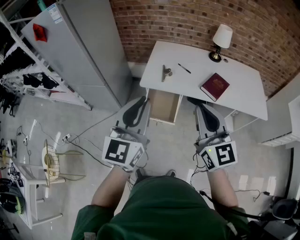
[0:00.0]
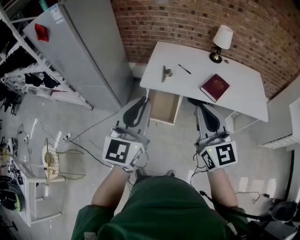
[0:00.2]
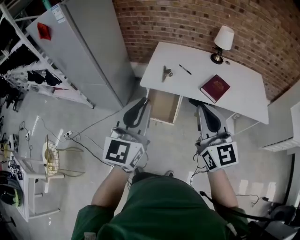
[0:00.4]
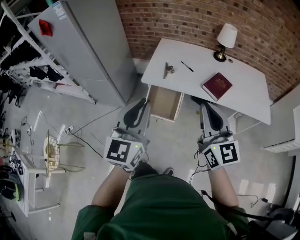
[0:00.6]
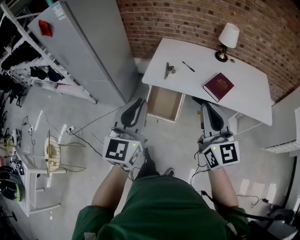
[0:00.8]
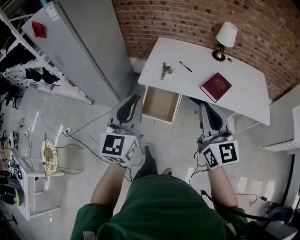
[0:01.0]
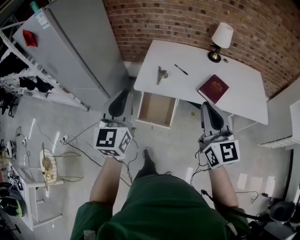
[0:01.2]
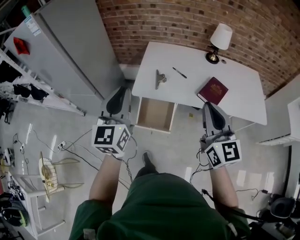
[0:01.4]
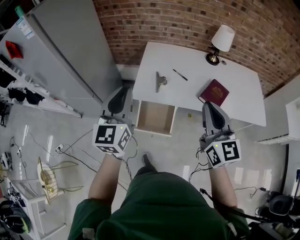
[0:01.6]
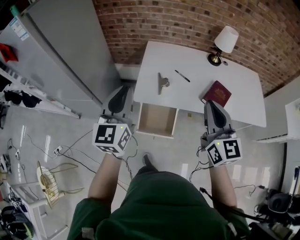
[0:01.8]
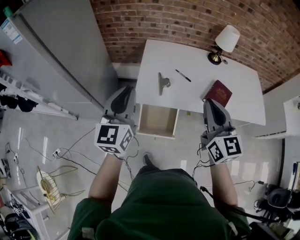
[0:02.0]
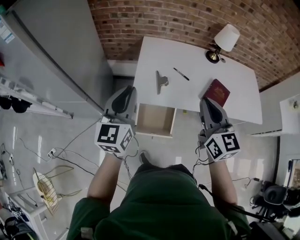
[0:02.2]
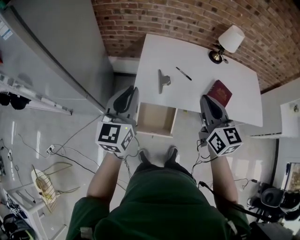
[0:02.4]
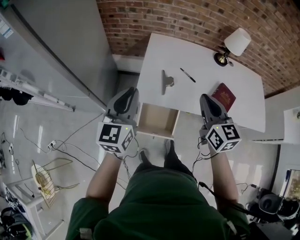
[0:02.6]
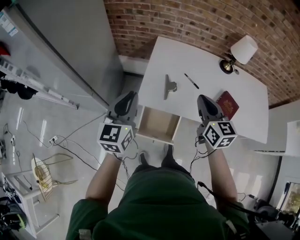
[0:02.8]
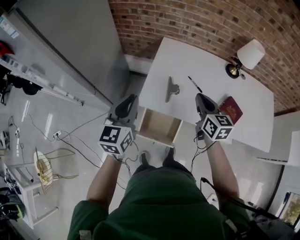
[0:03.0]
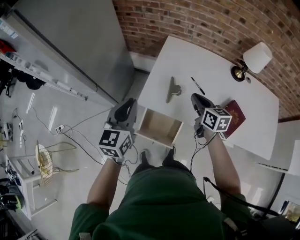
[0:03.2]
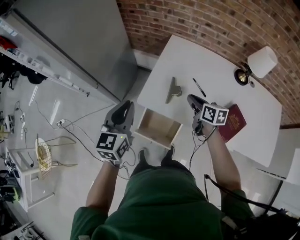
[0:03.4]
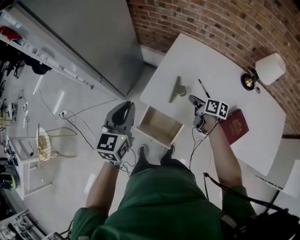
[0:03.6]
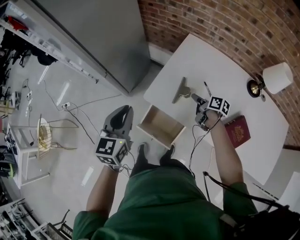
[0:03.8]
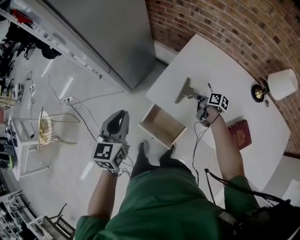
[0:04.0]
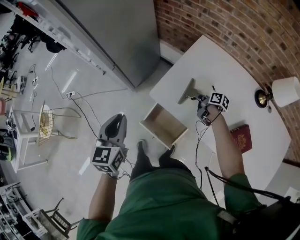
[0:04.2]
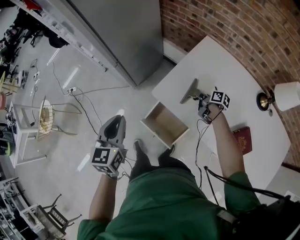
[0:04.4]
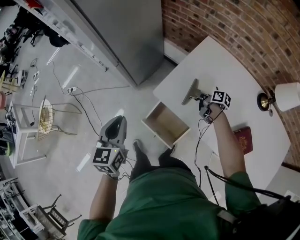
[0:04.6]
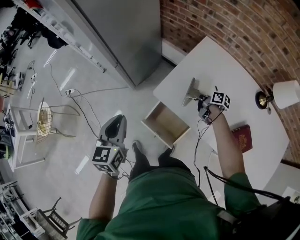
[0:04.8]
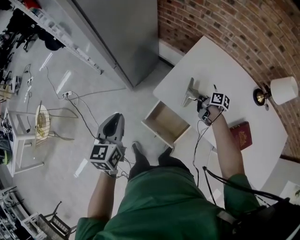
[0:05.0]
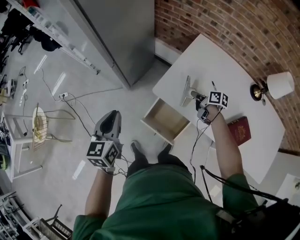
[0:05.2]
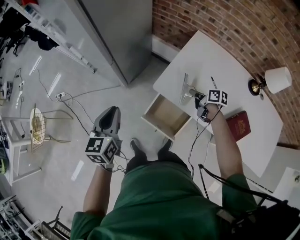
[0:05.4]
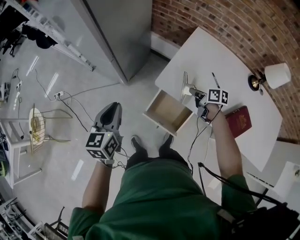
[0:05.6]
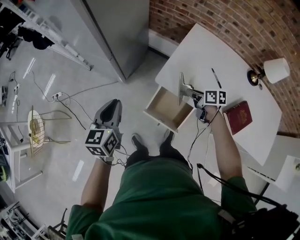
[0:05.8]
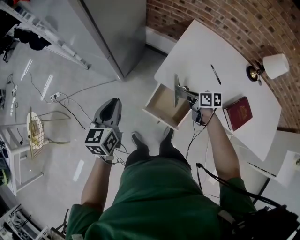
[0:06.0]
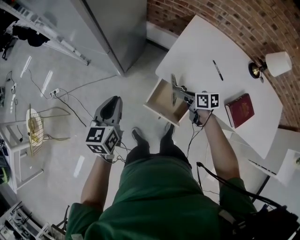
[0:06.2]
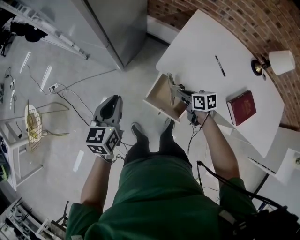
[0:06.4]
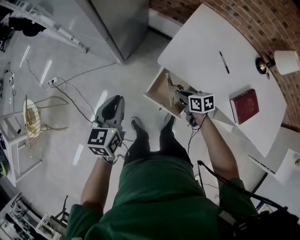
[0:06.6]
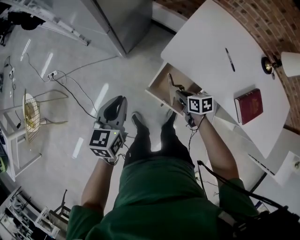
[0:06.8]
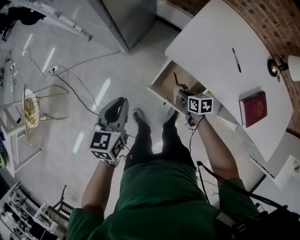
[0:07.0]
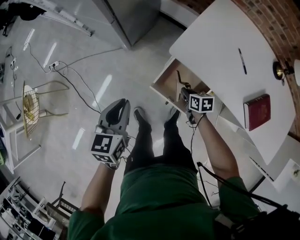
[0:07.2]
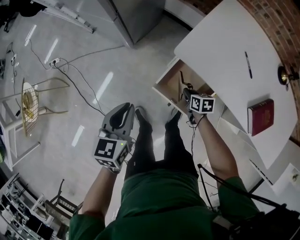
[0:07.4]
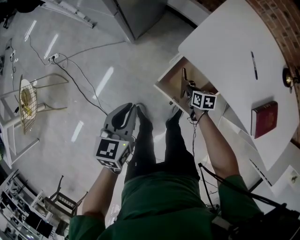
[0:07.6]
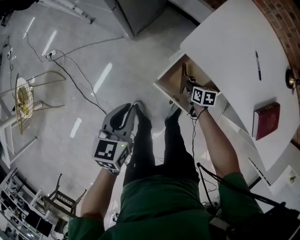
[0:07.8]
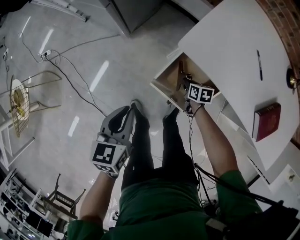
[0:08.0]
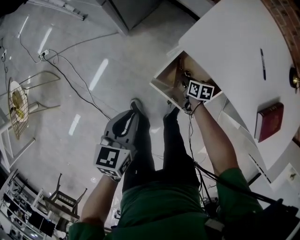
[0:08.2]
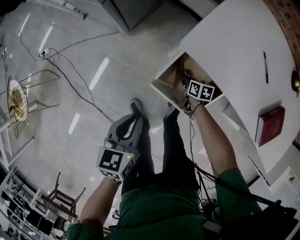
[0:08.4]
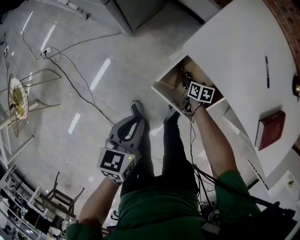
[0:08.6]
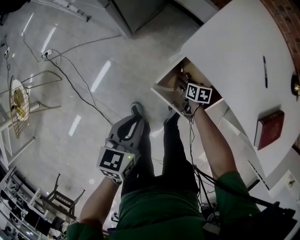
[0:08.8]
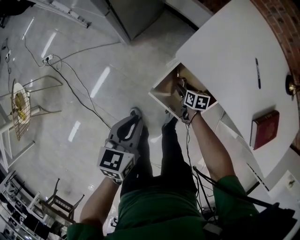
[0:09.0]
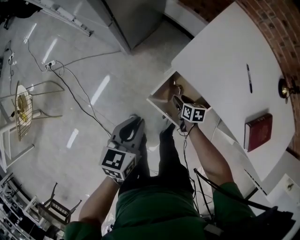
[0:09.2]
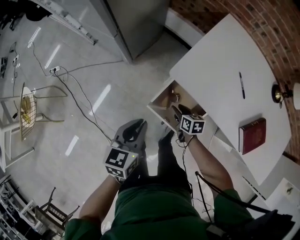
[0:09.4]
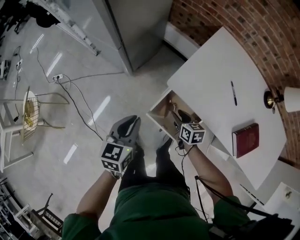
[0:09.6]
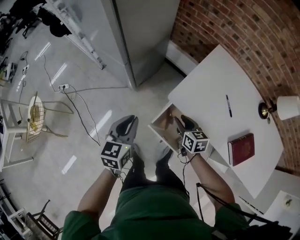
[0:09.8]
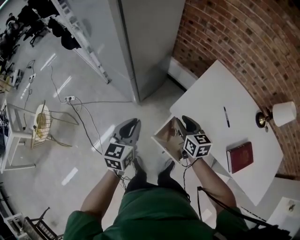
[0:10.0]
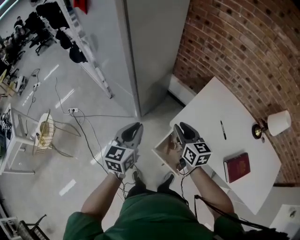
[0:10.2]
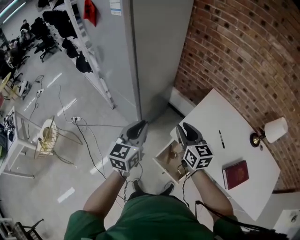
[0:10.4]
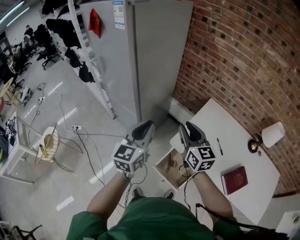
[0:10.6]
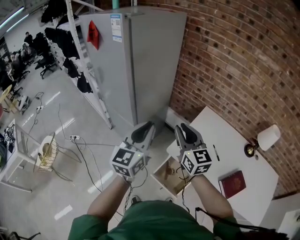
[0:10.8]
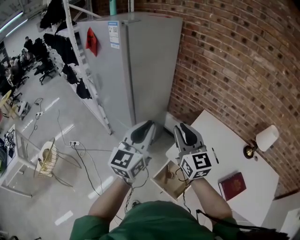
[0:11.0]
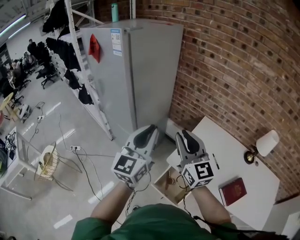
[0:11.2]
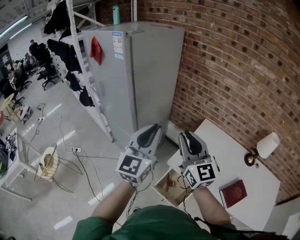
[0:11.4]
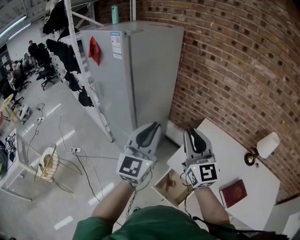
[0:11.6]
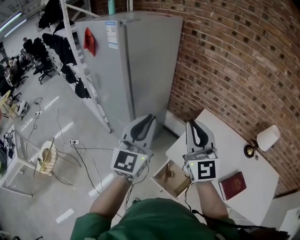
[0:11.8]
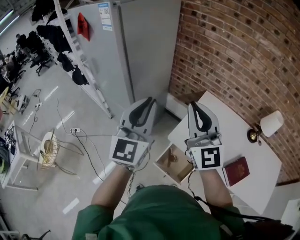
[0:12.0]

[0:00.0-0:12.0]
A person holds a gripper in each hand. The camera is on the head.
0:00.0 to 0:01.6: Both grippers travel together forward, some 20 cm.
0:01.6 to 0:03.0: The left gripper travels forward and downward by about 15 cm. Meanwhile the right gripper moves forward and downward, about 30 cm, and rotates roughly 30 degrees.
0:03.0 to 0:04.4: The left gripper moves about 15 cm, and turns by some 30 degrees; the right gripper travels downward by some 30 cm, swivels approximately 60 degrees, and opens up.
0:04.4 to 0:06.0: The left gripper travels to the left by roughly 10 cm. The right gripper goes approximately 20 cm to the left, backward and upward, turns by some 20 degrees, and closes.
0:06.0 to 0:07.6: The right gripper is displaced downward by roughly 25 cm. The left gripper moves downward and backward, about 15 cm.
0:07.6 to 0:09.0: The right gripper goes roughly 5 cm downward, and opens up. Meanwhile the left gripper shifts by about 5 cm.
0:09.0 to 0:10.4: The left gripper moves upward, about 35 cm, and turns by some 30 degrees. Meanwhile the right gripper goes about 60 cm upward, tips its fingers upward by roughly 40 degrees, and closes up.
0:10.4 to 0:12.0: Both grippers travel together upward, some 20 cm. The right gripper rotates approximately 40 degrees, and closes up. Meanwhile the left gripper rotates roughly 30 degrees.

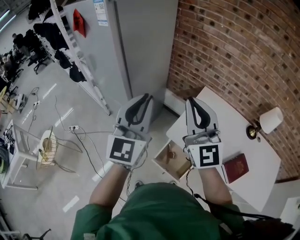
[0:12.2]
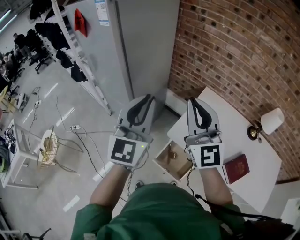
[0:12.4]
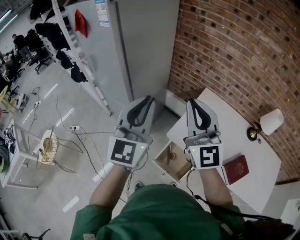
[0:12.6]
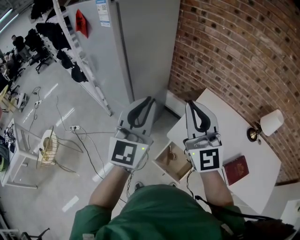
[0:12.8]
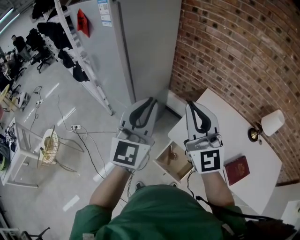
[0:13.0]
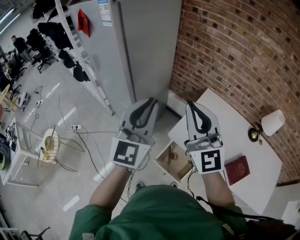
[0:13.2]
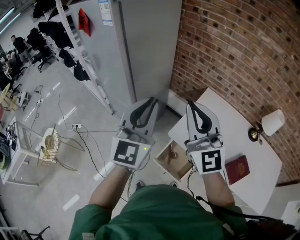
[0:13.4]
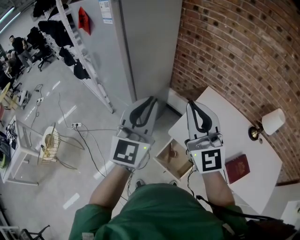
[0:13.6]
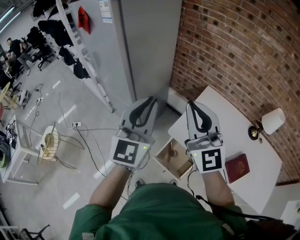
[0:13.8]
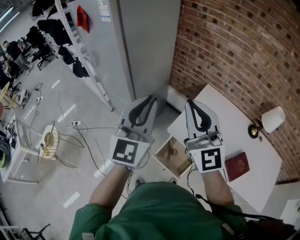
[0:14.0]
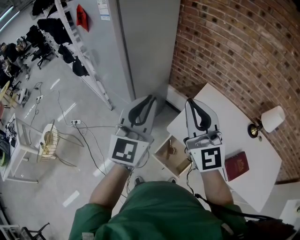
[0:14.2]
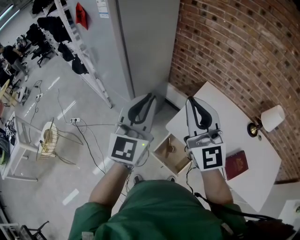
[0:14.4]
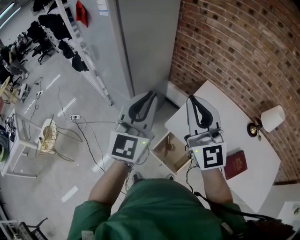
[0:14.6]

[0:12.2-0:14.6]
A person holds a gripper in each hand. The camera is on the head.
0:12.2 to 0:14.6: The grippers move only a little.

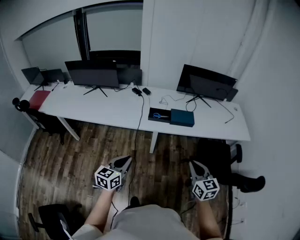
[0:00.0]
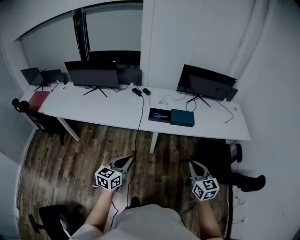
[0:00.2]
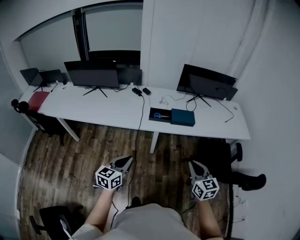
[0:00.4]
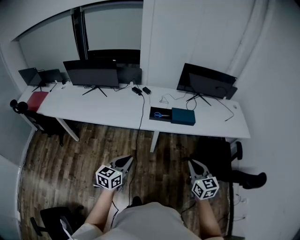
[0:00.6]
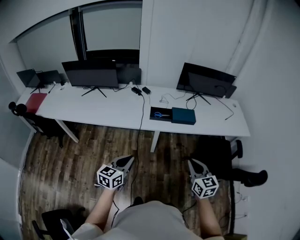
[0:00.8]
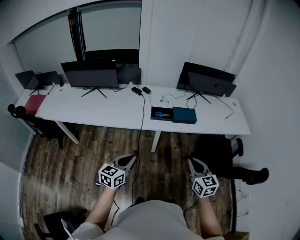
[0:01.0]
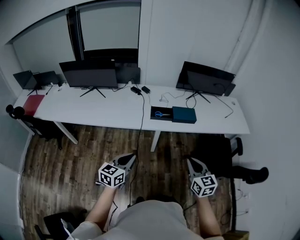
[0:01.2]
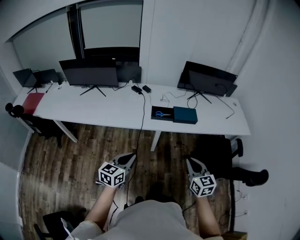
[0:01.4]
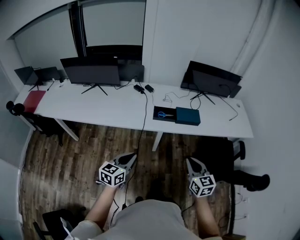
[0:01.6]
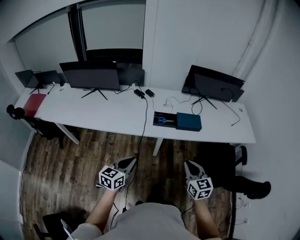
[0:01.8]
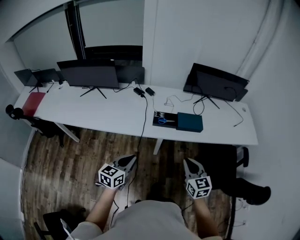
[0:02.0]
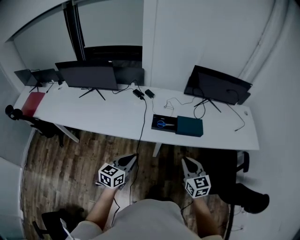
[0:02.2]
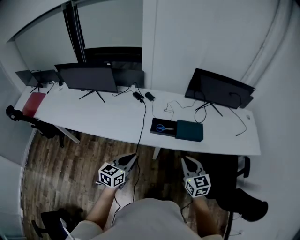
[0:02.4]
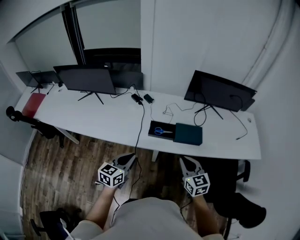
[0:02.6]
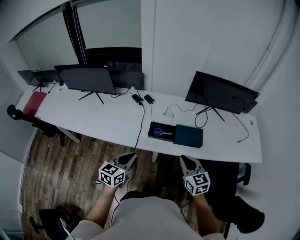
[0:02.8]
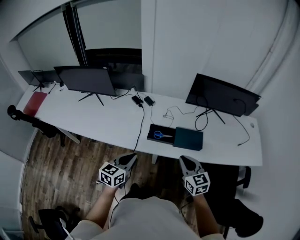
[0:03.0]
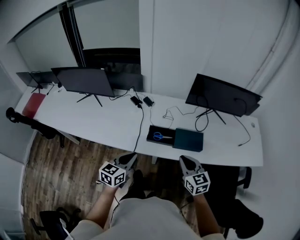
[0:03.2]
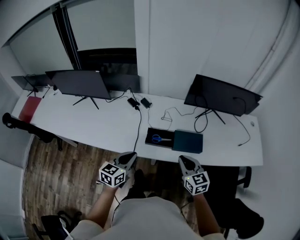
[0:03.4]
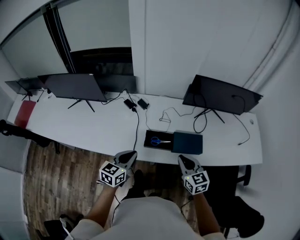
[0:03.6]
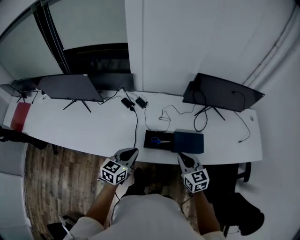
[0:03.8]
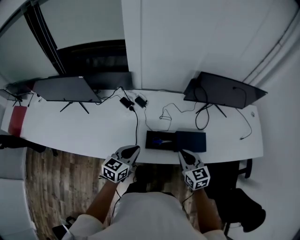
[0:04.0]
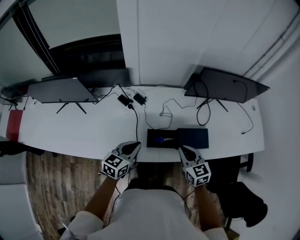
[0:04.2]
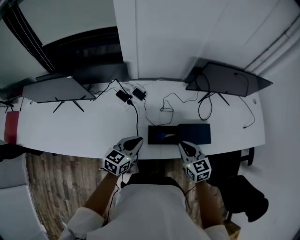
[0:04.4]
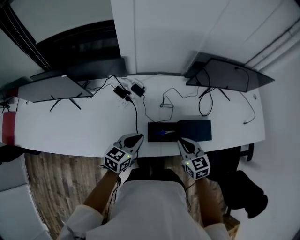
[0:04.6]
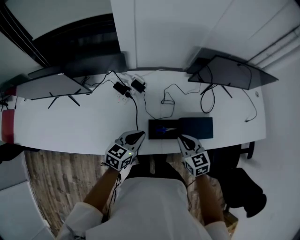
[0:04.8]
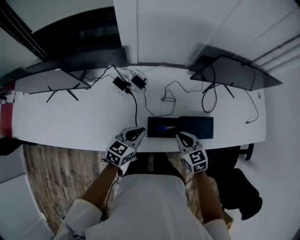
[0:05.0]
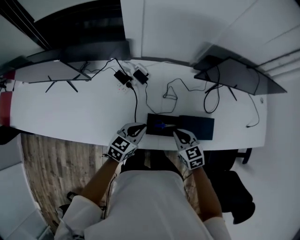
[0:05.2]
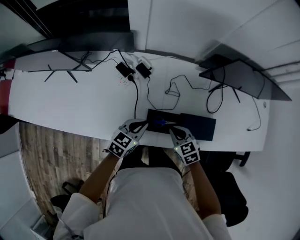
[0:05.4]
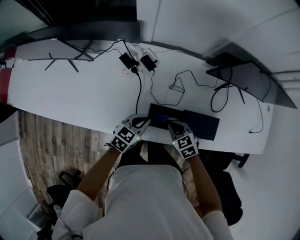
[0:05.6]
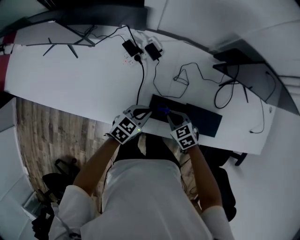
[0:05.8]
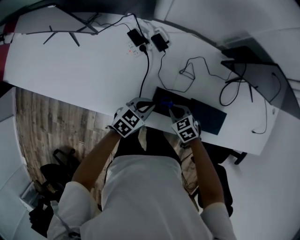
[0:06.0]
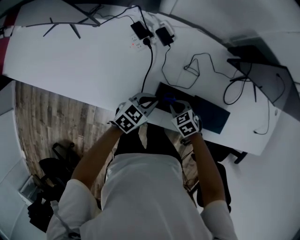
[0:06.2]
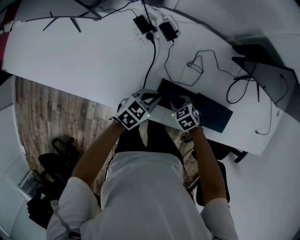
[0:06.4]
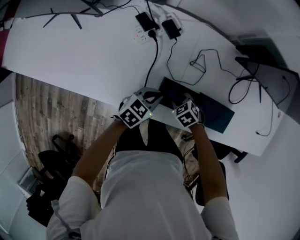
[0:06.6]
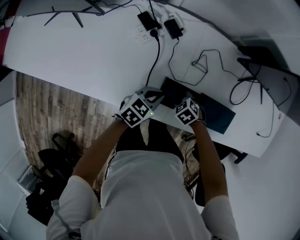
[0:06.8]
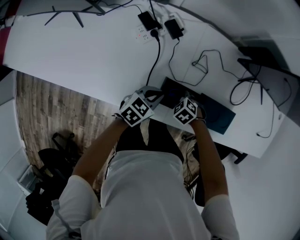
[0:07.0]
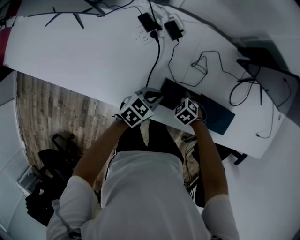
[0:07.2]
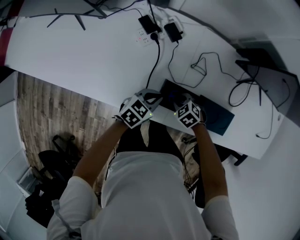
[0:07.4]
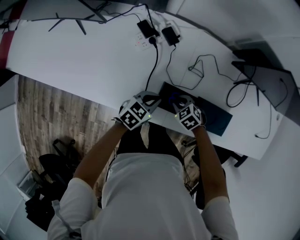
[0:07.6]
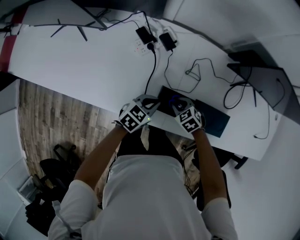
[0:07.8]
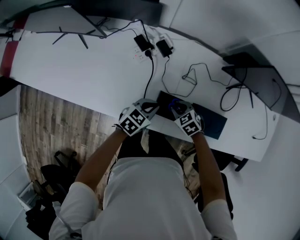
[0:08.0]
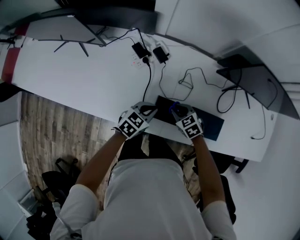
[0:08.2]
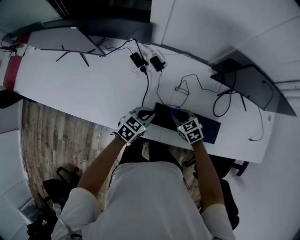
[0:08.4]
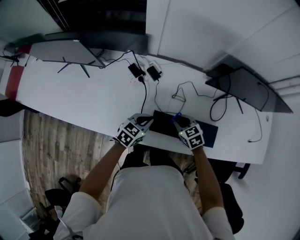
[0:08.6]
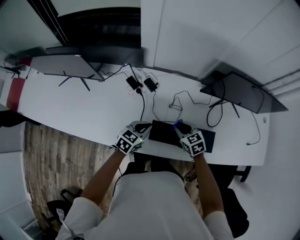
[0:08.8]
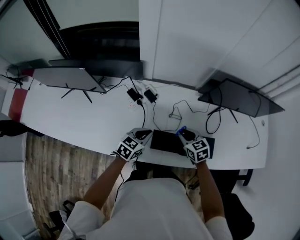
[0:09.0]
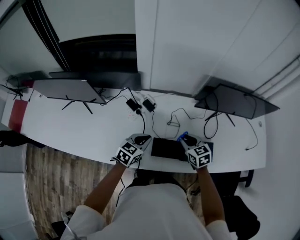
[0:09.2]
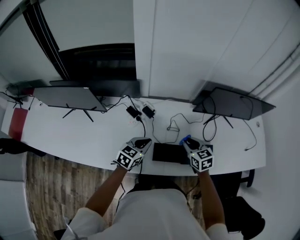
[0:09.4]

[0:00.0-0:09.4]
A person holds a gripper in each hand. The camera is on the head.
0:00.0 to 0:01.6: The right gripper is displaced to the left by approximately 10 cm; the left gripper goes about 10 cm forward and to the left.
0:01.6 to 0:03.2: Both grippers travel together forward, about 25 cm.
0:03.2 to 0:04.8: The right gripper is displaced forward, downward and to the left by about 25 cm. The left gripper is displaced forward and downward by some 25 cm, and swivels approximately 20 degrees.
0:04.8 to 0:06.2: Both grippers move downward, about 20 cm. The right gripper turns by some 40 degrees.
0:06.2 to 0:07.8: The grippers make only small movements.
0:07.8 to 0:09.4: The grippers both shift upward by some 20 cm. The right gripper changes its angle by approximately 50 degrees.
